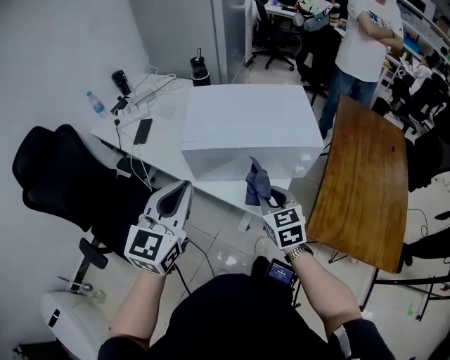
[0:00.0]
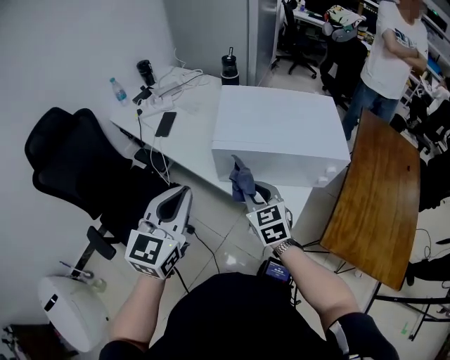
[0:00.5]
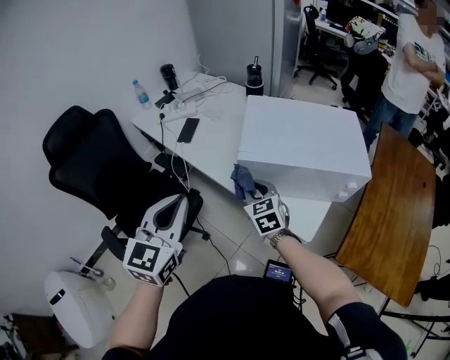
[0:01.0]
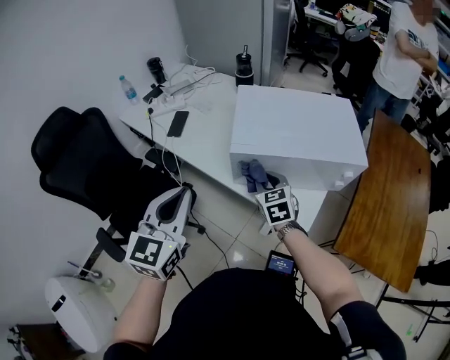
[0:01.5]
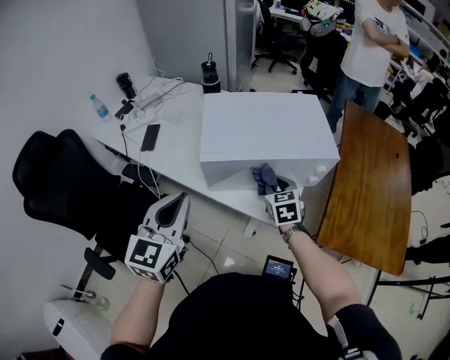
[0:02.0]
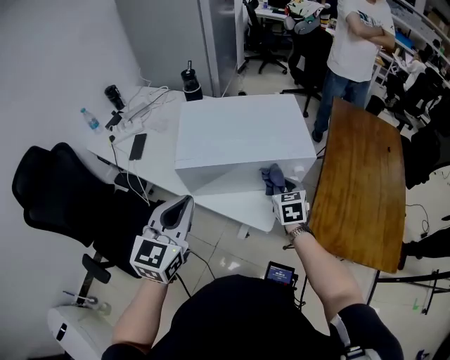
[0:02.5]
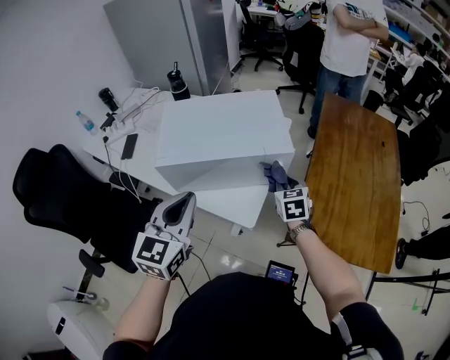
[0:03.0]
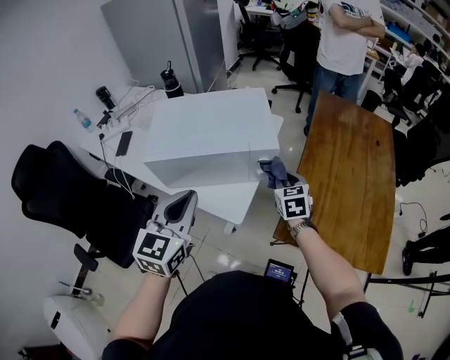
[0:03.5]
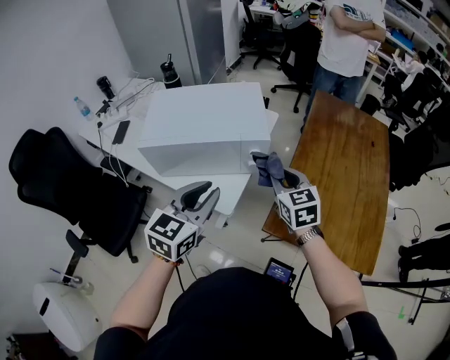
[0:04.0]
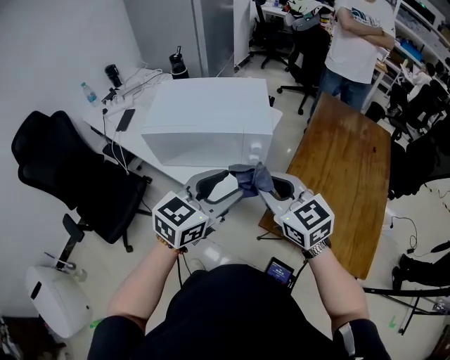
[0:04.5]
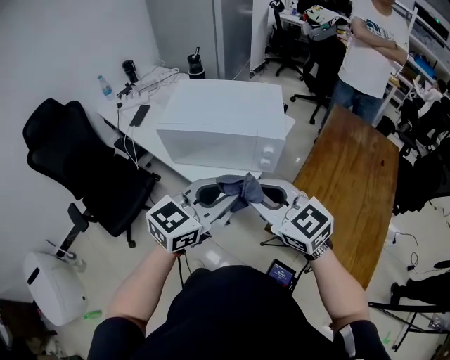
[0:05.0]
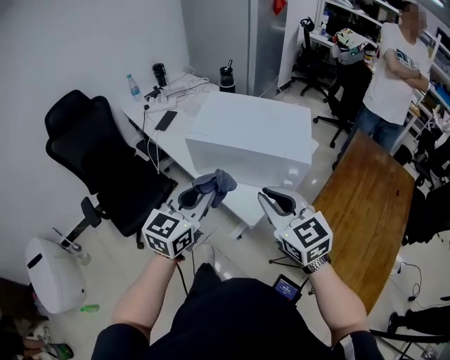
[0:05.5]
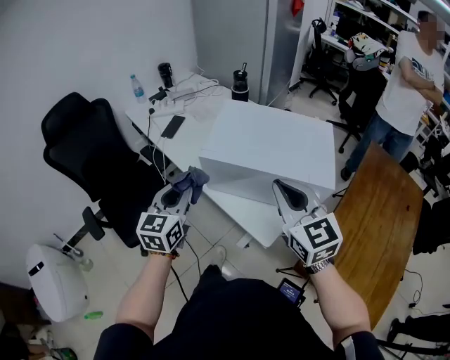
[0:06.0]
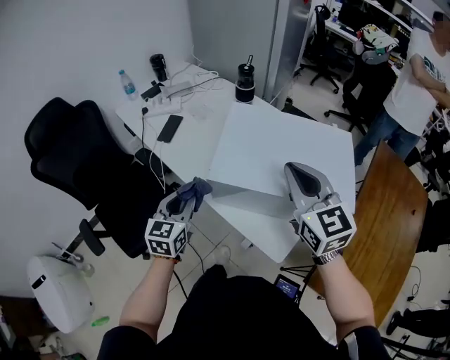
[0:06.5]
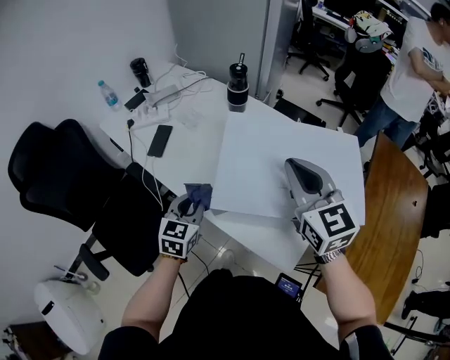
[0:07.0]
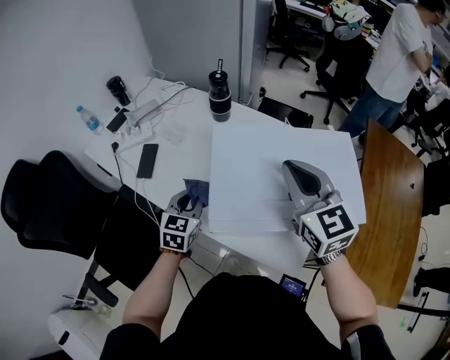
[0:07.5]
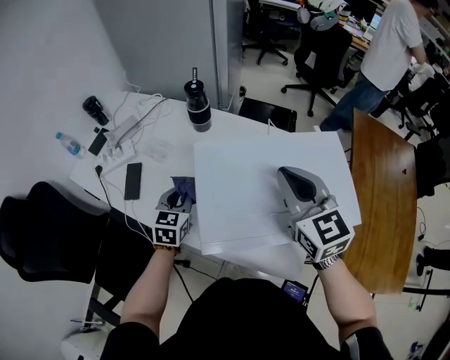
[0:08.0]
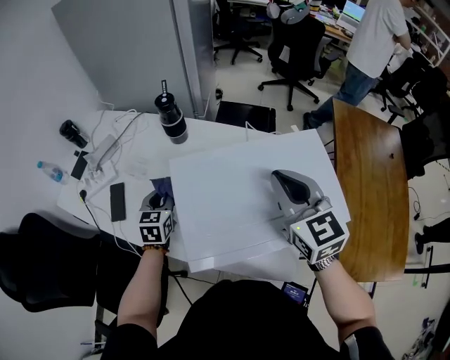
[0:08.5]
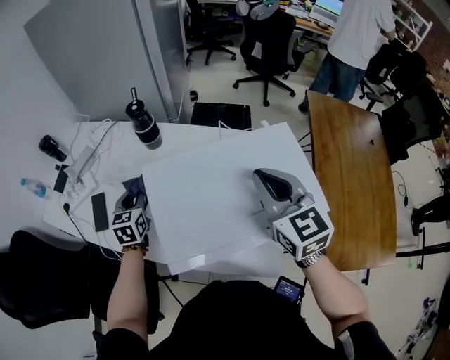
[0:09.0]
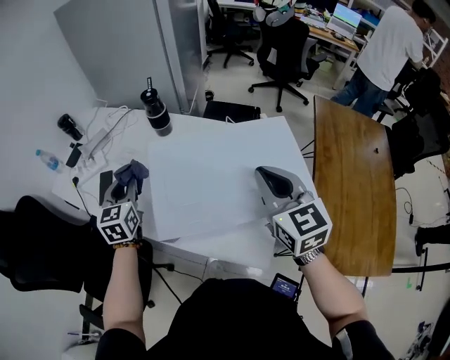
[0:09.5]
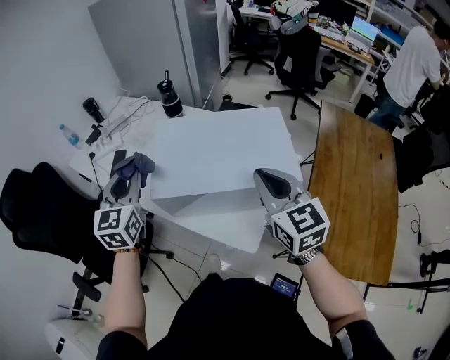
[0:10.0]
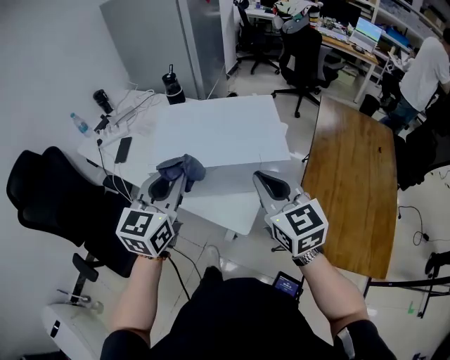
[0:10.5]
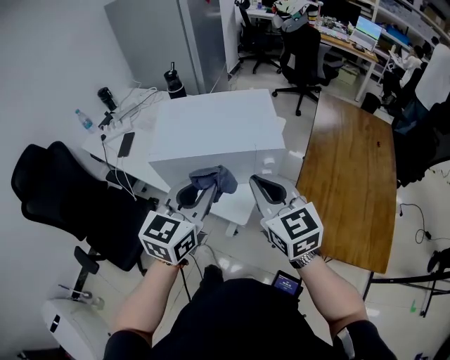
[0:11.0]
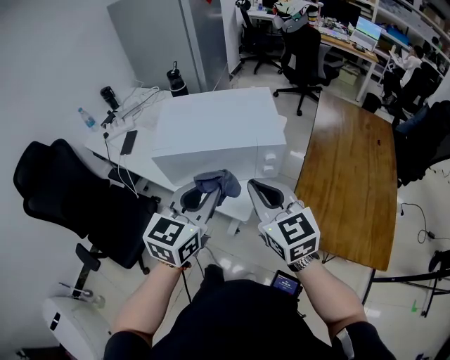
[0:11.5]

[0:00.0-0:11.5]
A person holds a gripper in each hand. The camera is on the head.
0:00.0 to 0:02.0: The right gripper goes roughly 10 cm forward and downward, and reaches about 20 cm to the left, then returns. The left gripper moves to the left, roughly 5 cm.
0:02.0 to 0:04.0: The left gripper travels to the right by roughly 30 cm; the right gripper travels to the right and upward by approximately 25 cm.
0:04.0 to 0:06.0: The left gripper ends up about 30 cm from where it was, rotates about 40 degrees, and opens, then closes once more; the right gripper ends up roughly 25 cm from where it was, and turns by roughly 30 degrees.
0:06.0 to 0:07.5: The right gripper moves forward, about 25 cm; the left gripper heads forward and downward, covering some 30 cm, and rotates roughly 30 degrees.
0:07.5 to 0:09.5: The left gripper travels upward and forward by about 15 cm; the right gripper moves to the right, some 10 cm.
0:09.5 to 0:11.5: The right gripper is displaced backward by about 25 cm; the left gripper heads backward and to the right, covering about 50 cm, and swivels some 30 degrees.

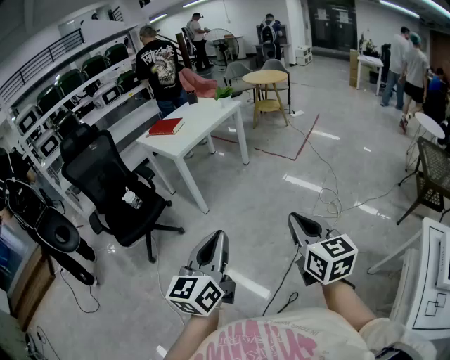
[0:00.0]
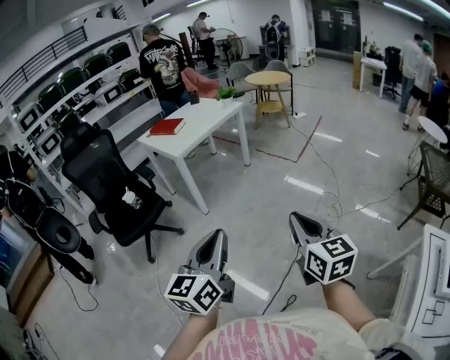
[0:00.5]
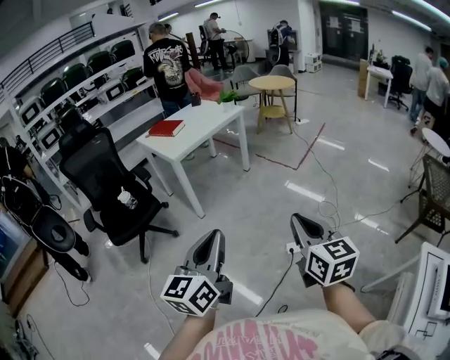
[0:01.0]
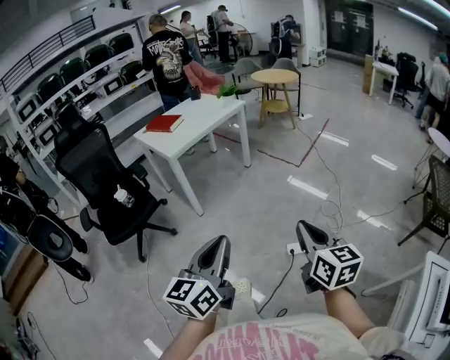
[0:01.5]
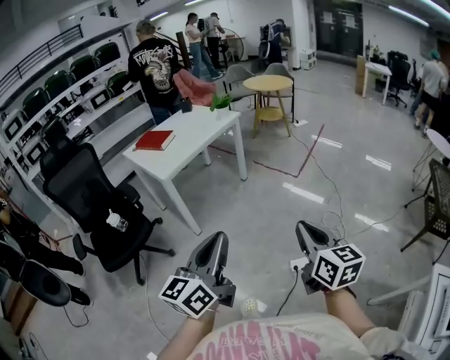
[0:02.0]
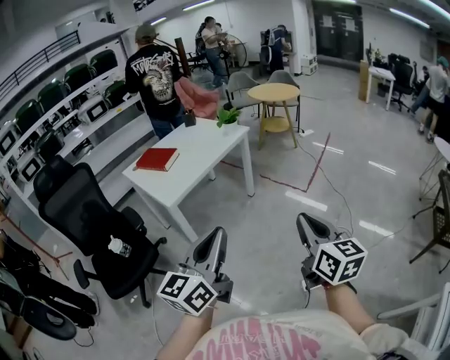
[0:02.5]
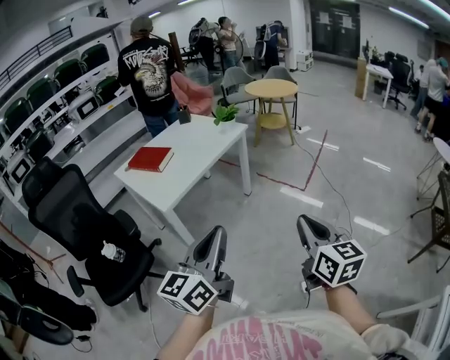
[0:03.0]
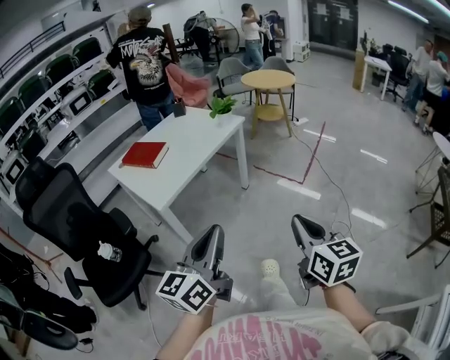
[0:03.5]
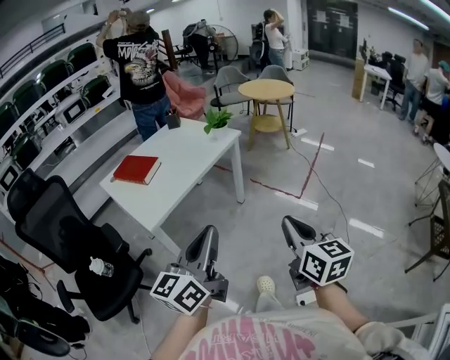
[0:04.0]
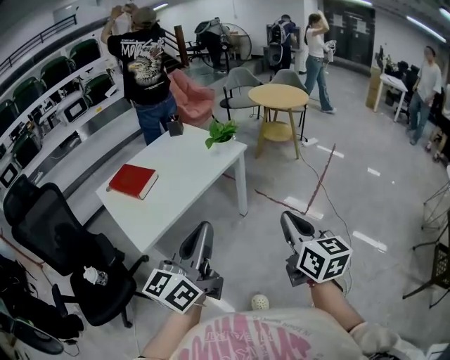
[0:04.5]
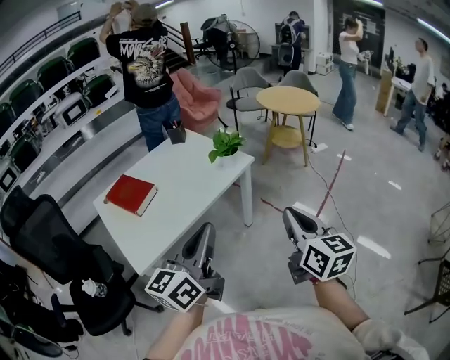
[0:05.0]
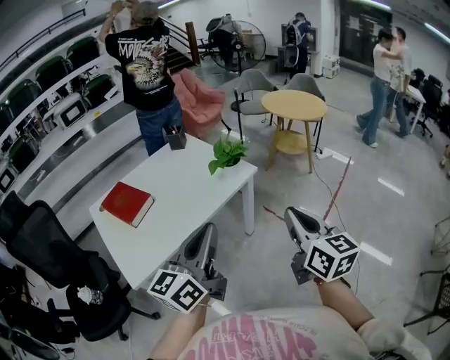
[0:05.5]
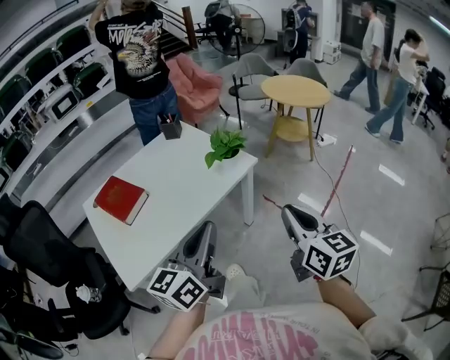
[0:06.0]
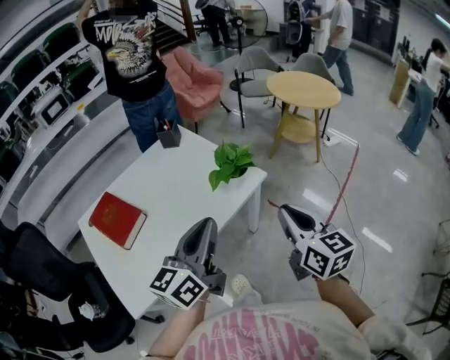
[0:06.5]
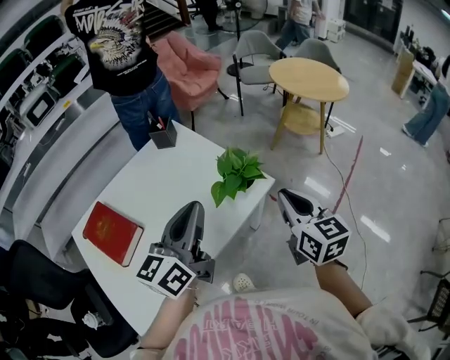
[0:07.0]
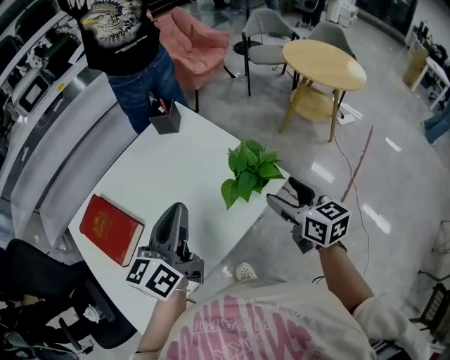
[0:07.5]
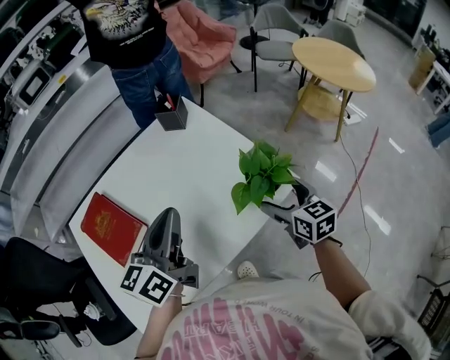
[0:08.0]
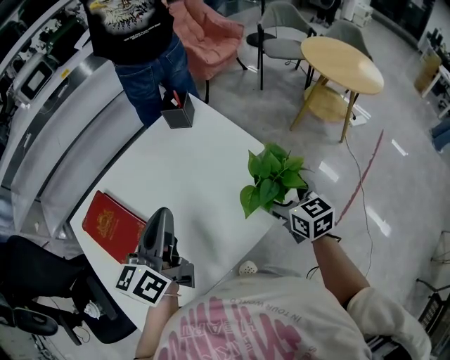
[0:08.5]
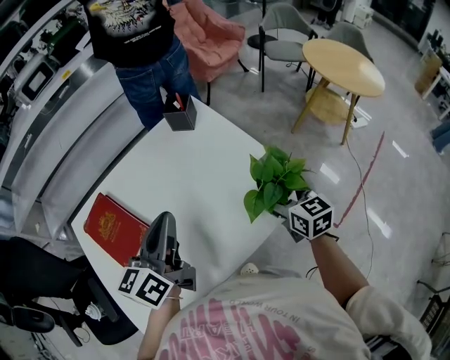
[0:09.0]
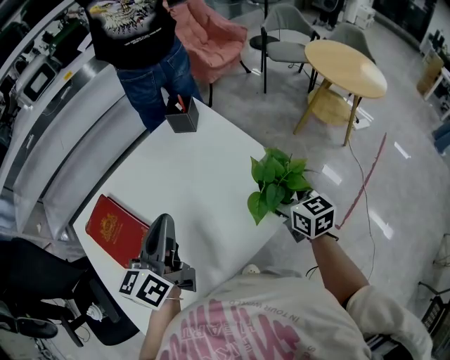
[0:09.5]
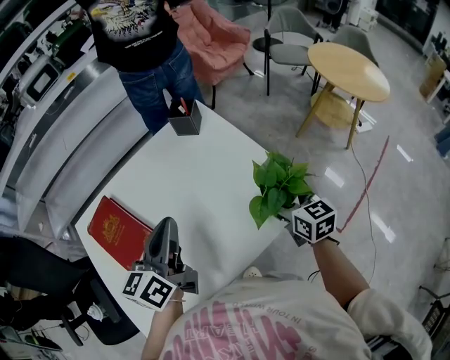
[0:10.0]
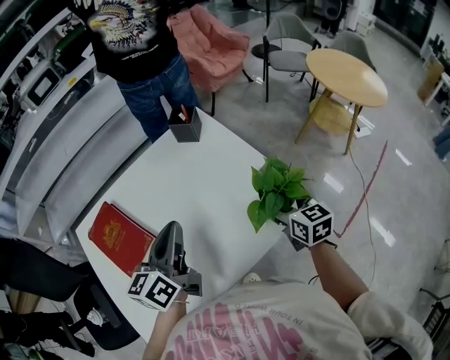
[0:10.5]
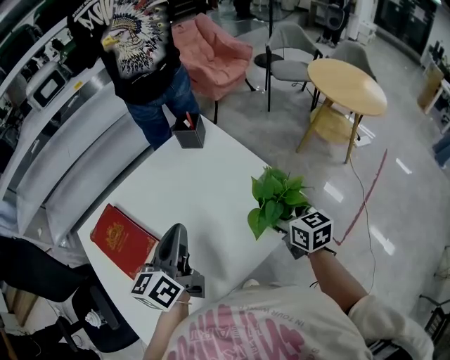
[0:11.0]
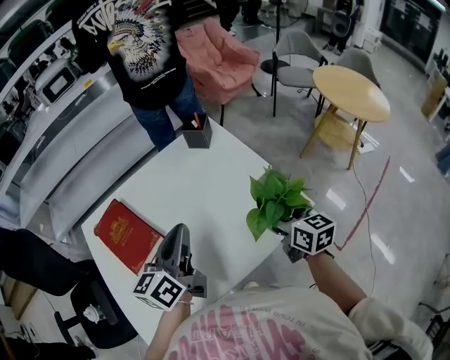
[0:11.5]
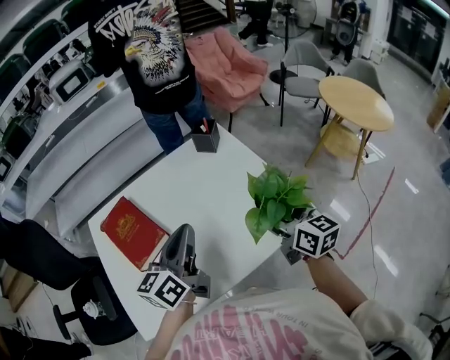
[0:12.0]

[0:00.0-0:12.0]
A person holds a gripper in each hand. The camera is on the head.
0:00.0 to 0:02.0: The grippers both shift forward by roughly 25 cm.
0:02.0 to 0:04.0: Both grippers travel together forward, some 40 cm.
0:04.0 to 0:06.0: The two grippers travel together, forward, approximately 40 cm.
0:06.0 to 0:08.0: The left gripper shifts about 40 cm forward and to the left, while the right gripper shifts some 40 cm forward and downward, turns by approximately 20 degrees, and opens its fingers.
0:08.0 to 0:10.0: The left gripper changes place by approximately 5 cm, while the right gripper shifts roughly 5 cm forward.
0:10.0 to 0:12.0: The right gripper moves upward and to the left, approximately 10 cm.

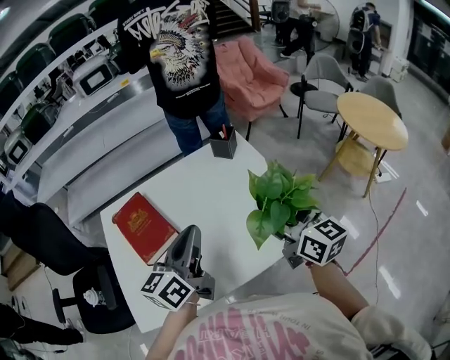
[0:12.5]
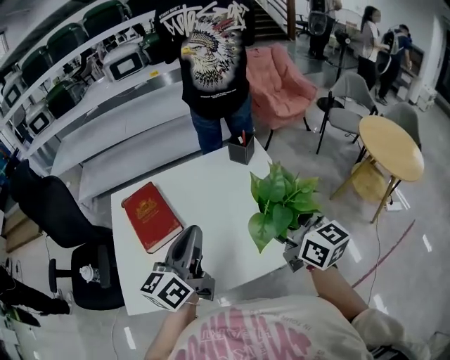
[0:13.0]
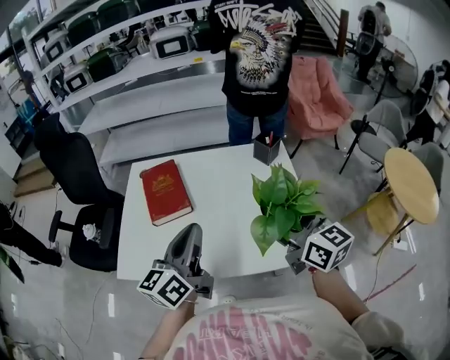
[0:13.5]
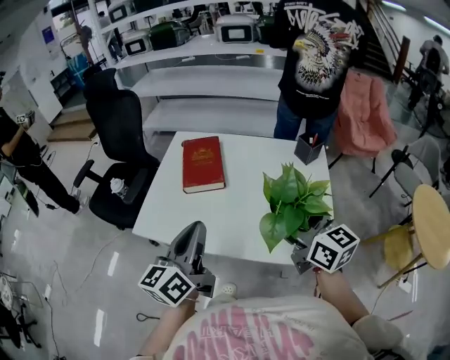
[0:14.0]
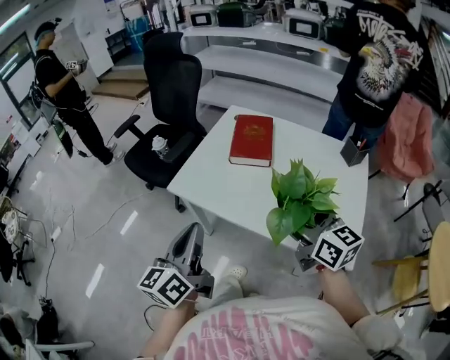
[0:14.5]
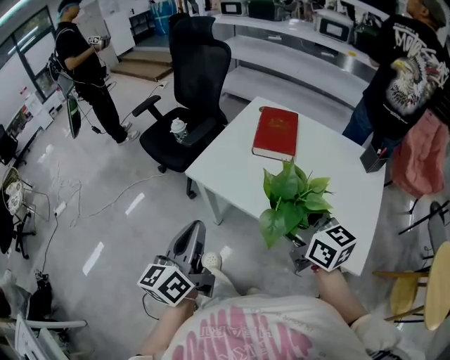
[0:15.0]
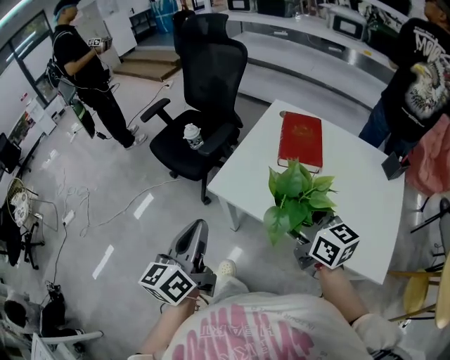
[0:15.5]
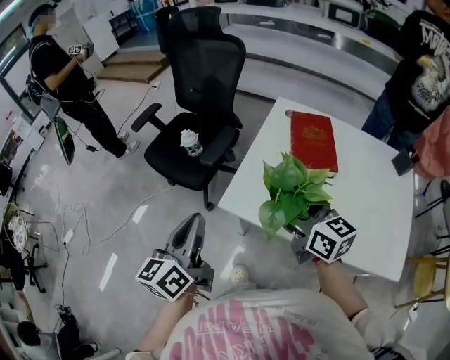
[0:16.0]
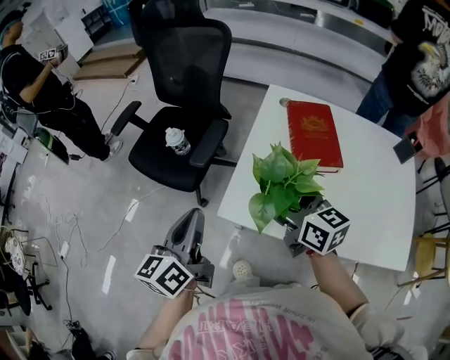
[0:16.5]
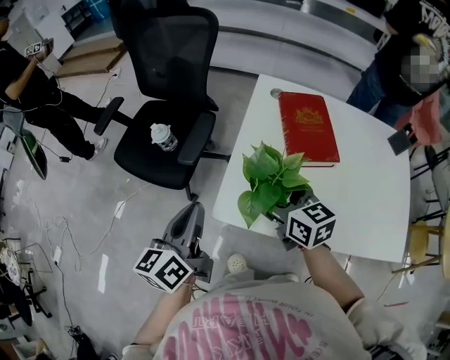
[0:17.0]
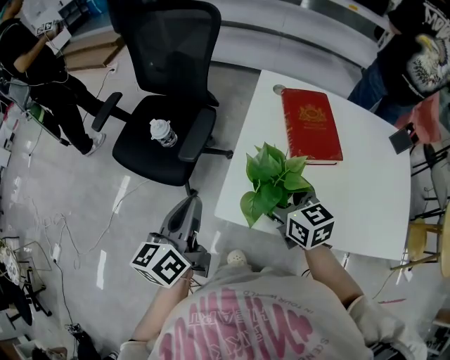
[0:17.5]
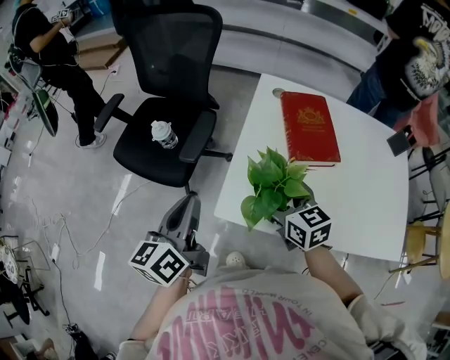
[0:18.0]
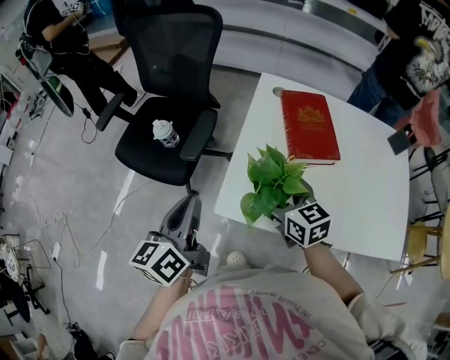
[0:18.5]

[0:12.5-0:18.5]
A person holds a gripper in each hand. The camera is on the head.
0:12.5 to 0:14.5: The right gripper changes place by roughly 20 cm, and rotates about 50 degrees; the left gripper moves about 30 cm, and turns by about 60 degrees.
0:14.5 to 0:16.5: The grippers both shift forward and to the left by approximately 35 cm.
0:16.5 to 0:18.5: The right gripper shifts approximately 5 cm downward.
